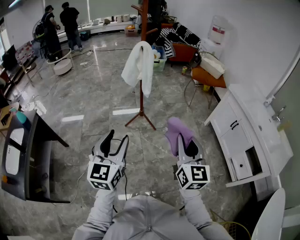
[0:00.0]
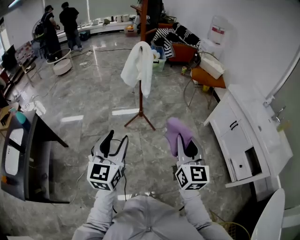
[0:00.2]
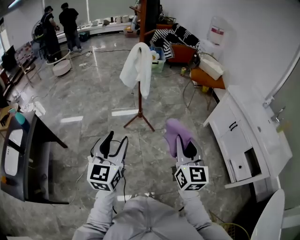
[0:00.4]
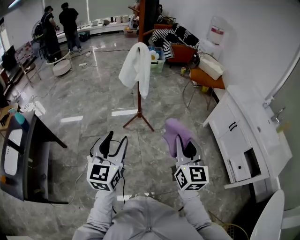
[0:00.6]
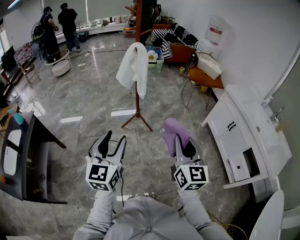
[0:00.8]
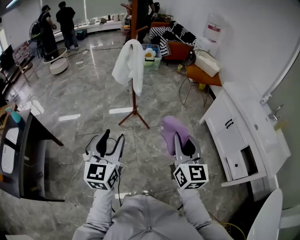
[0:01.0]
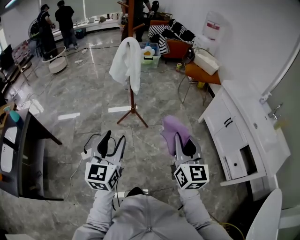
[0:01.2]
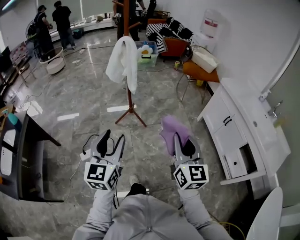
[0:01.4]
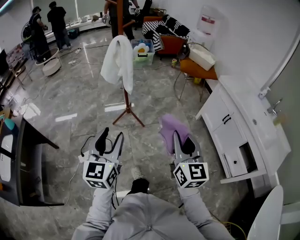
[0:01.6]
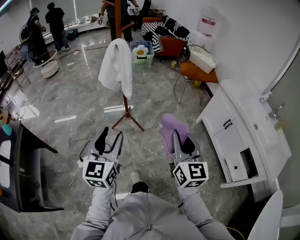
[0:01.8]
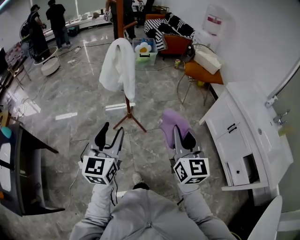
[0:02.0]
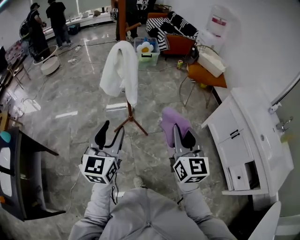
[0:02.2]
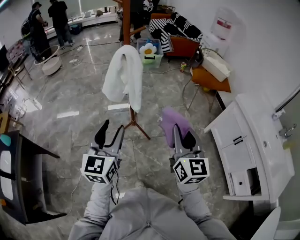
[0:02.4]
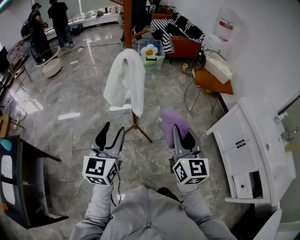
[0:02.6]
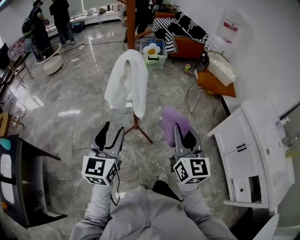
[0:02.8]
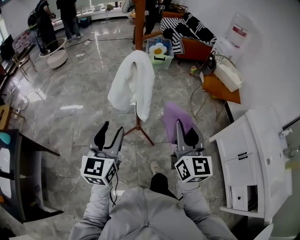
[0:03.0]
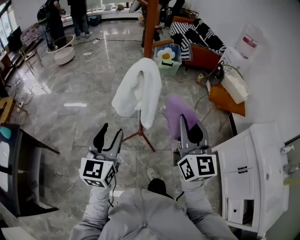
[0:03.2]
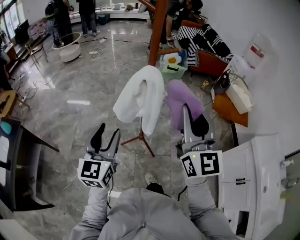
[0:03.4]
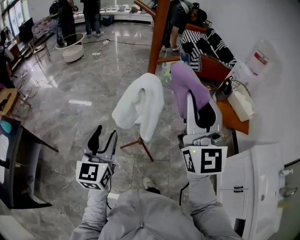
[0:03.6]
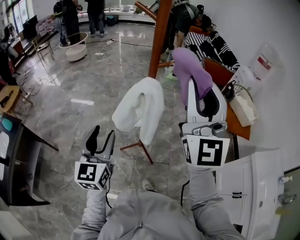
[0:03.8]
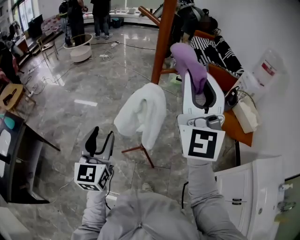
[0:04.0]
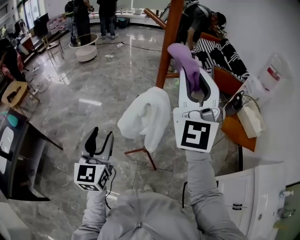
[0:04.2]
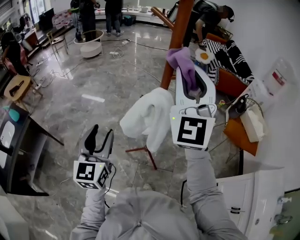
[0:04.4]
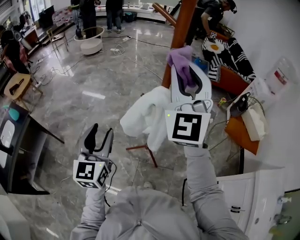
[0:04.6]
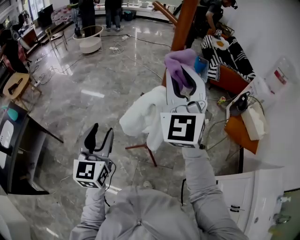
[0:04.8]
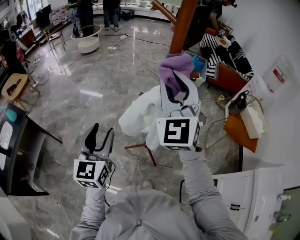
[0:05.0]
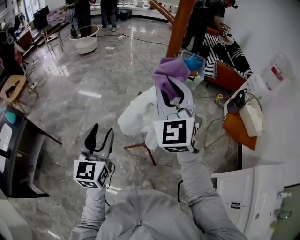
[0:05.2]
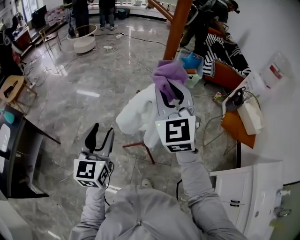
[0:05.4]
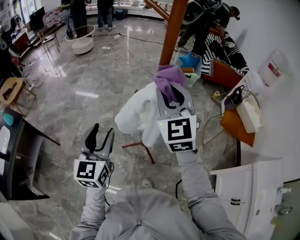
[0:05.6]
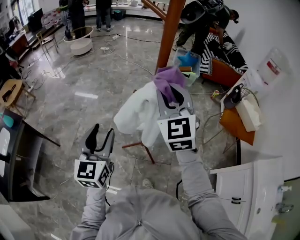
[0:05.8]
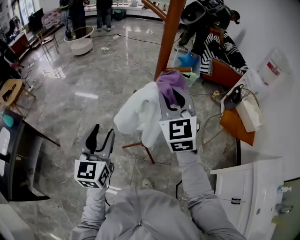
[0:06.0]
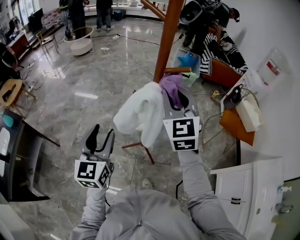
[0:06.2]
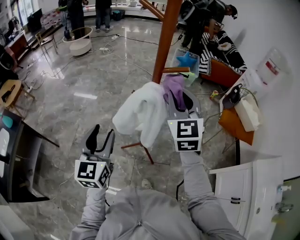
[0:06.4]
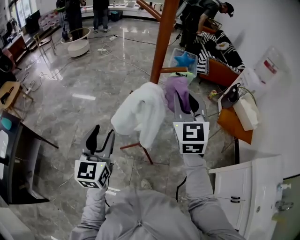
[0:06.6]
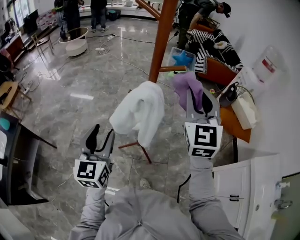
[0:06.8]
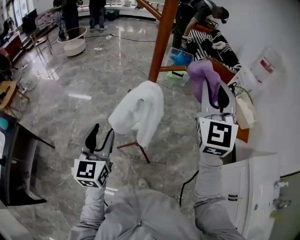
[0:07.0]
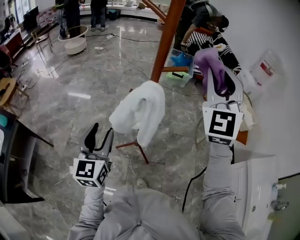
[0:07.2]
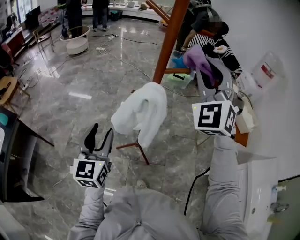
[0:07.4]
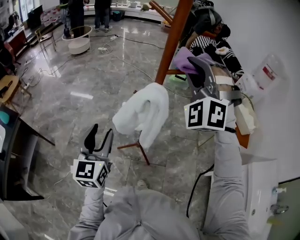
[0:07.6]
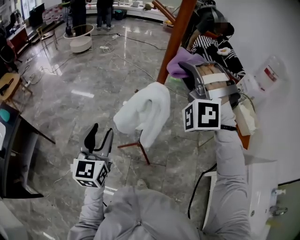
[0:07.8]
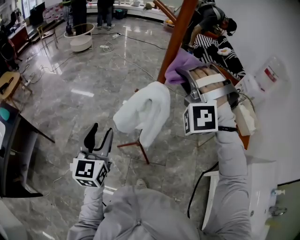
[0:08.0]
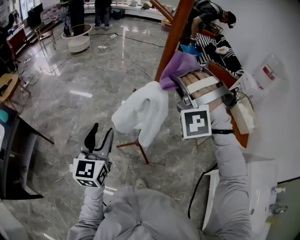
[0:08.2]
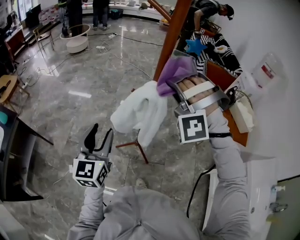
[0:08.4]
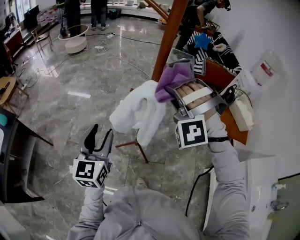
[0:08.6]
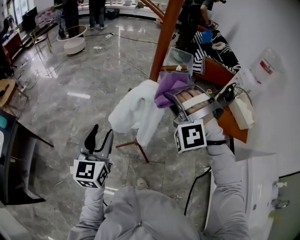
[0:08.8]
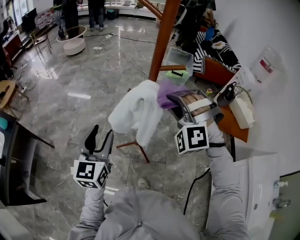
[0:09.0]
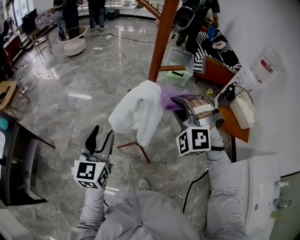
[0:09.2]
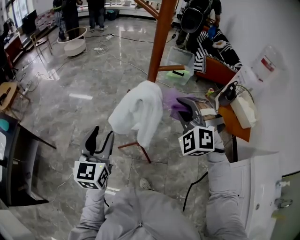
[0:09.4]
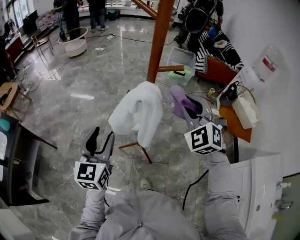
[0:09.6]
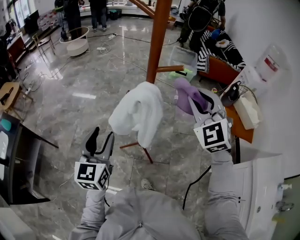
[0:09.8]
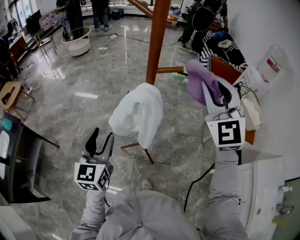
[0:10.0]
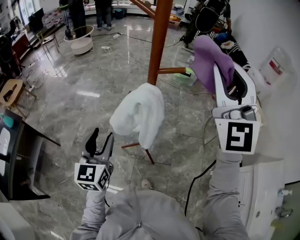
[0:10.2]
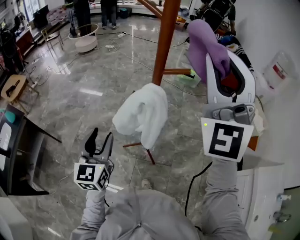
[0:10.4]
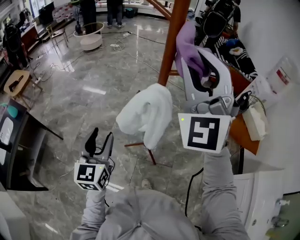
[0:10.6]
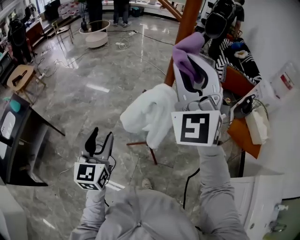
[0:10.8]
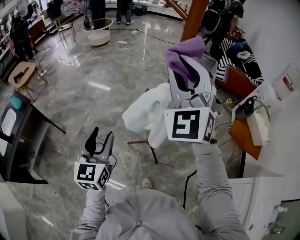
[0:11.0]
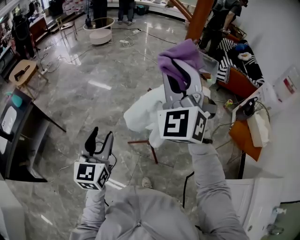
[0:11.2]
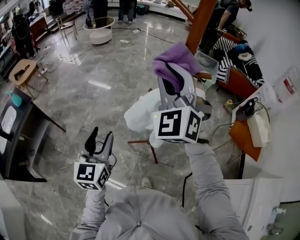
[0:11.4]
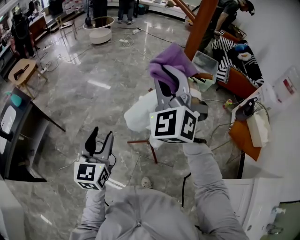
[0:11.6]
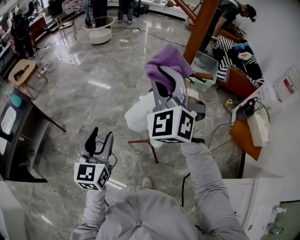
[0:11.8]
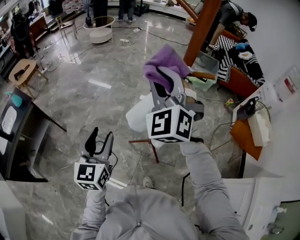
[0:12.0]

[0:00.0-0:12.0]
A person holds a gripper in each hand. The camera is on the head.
0.0 to 1.6 s: The left gripper is displaced to the right and forward by approximately 10 cm. The right gripper shifts approximately 10 cm to the right.
1.6 to 3.0 s: The grippers both shift forward by approximately 30 cm.
3.0 to 4.4 s: The right gripper goes roughly 35 cm forward and upward, and turns by roughly 40 degrees. The left gripper is displaced forward and to the left by approximately 15 cm, and changes its angle by approximately 20 degrees.
4.4 to 6.0 s: The right gripper is displaced downward by some 15 cm, and swivels roughly 20 degrees.
6.0 to 7.6 s: The right gripper is displaced upward by some 10 cm, and rotates around the line of its fingers by some 60 degrees, counterclockwise from behind.
7.6 to 9.0 s: The right gripper moves downward, about 15 cm, and rotates some 20 degrees.
9.0 to 10.4 s: The right gripper shifts roughly 25 cm upward, and angles its fingers upward, by some 50 degrees.
10.4 to 12.0 s: The left gripper moves to the left, approximately 5 cm. Meanwhile the right gripper goes approximately 25 cm downward, to the left and forward, and changes its angle by about 30 degrees.

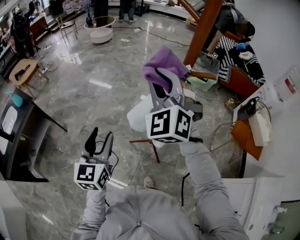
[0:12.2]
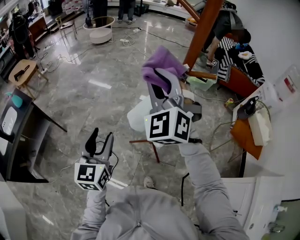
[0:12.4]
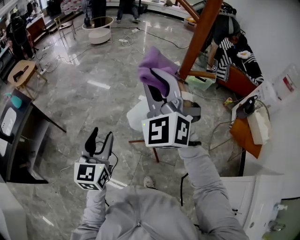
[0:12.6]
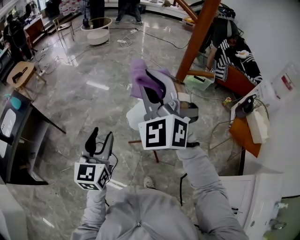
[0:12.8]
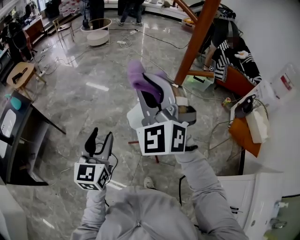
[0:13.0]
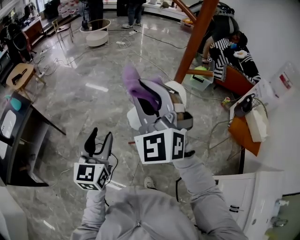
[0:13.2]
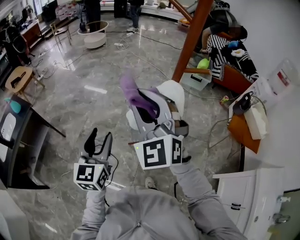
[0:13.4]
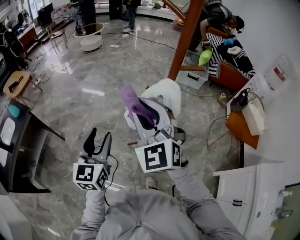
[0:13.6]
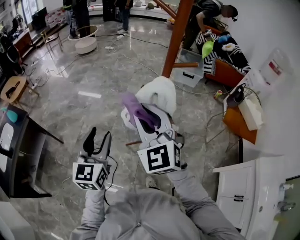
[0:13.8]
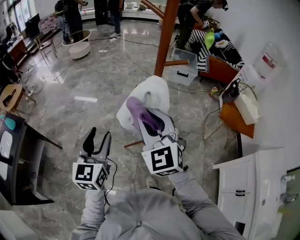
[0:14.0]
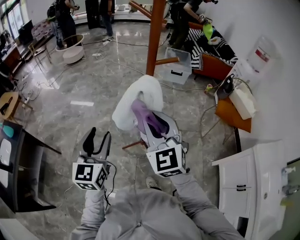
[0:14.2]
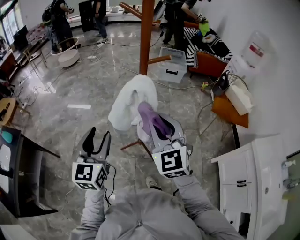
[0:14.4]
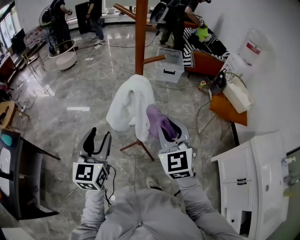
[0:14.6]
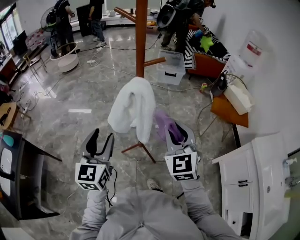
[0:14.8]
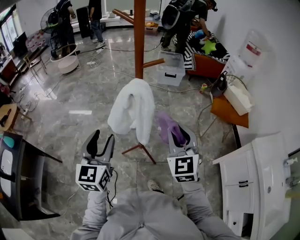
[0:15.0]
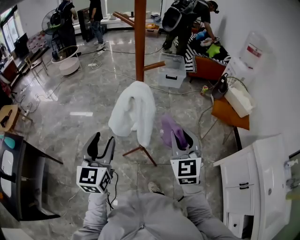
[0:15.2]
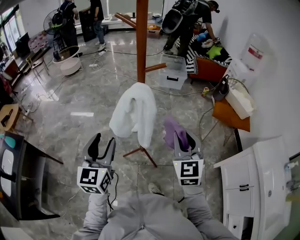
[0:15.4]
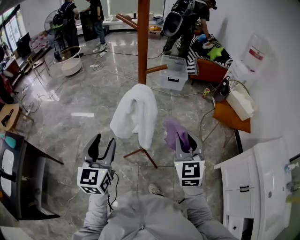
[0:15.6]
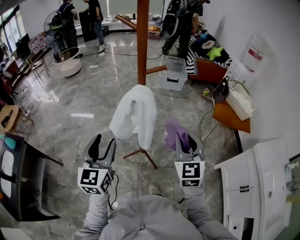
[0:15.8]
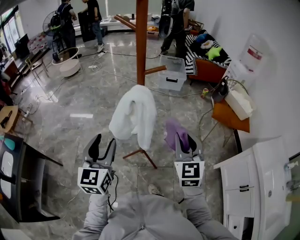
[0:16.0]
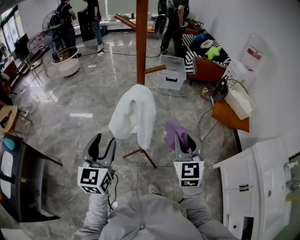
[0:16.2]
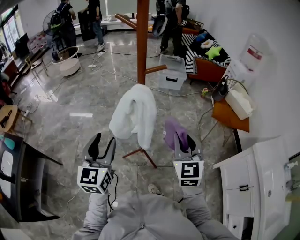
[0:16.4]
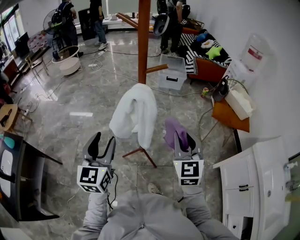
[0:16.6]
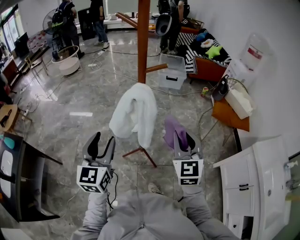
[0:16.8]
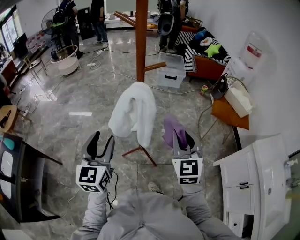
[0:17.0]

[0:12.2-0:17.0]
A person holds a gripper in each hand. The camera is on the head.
12.2 to 13.8 s: The right gripper travels backward by some 10 cm, and rotates some 20 degrees.
13.8 to 15.4 s: The left gripper heads to the right, covering approximately 5 cm. The right gripper moves to the right, some 20 cm, and changes its angle by approximately 30 degrees.
15.4 to 17.0 s: Both grippers stay put.

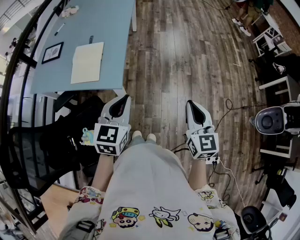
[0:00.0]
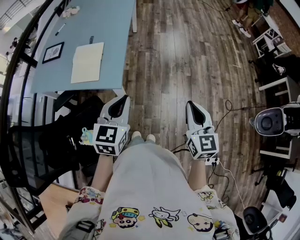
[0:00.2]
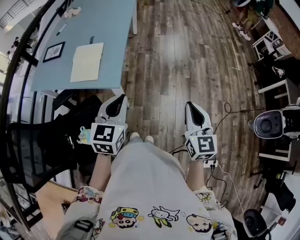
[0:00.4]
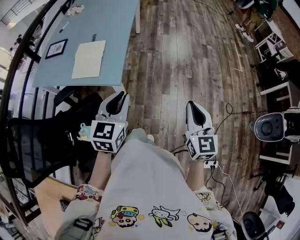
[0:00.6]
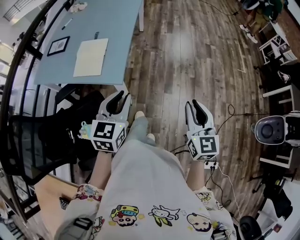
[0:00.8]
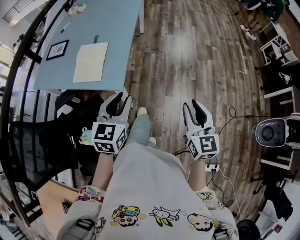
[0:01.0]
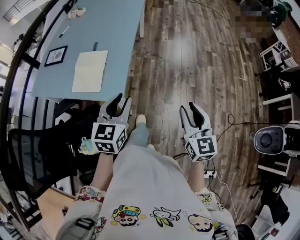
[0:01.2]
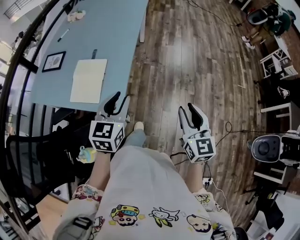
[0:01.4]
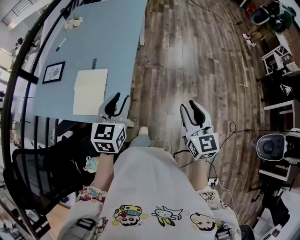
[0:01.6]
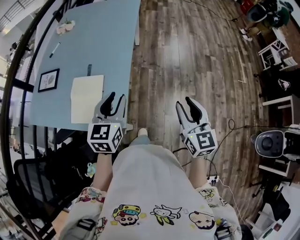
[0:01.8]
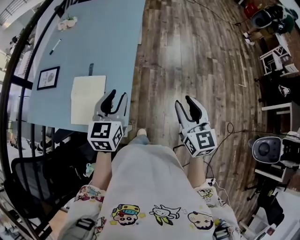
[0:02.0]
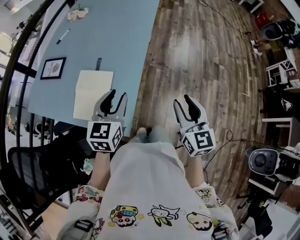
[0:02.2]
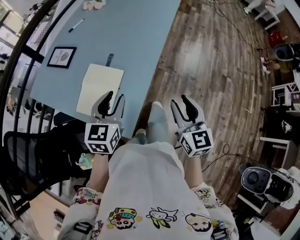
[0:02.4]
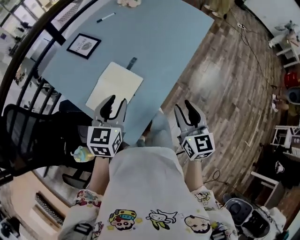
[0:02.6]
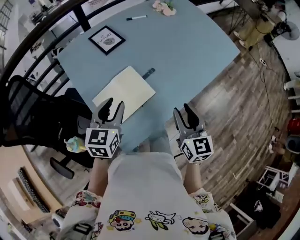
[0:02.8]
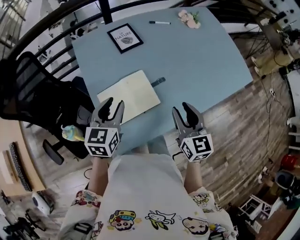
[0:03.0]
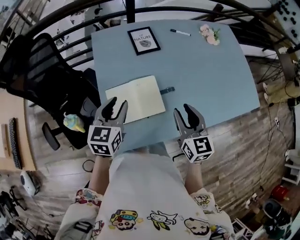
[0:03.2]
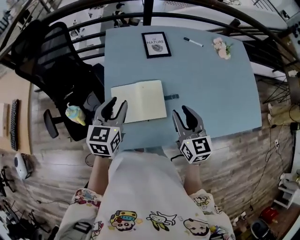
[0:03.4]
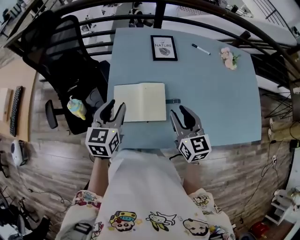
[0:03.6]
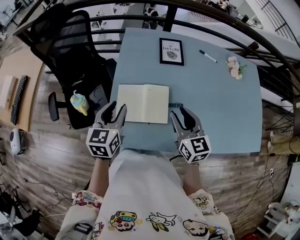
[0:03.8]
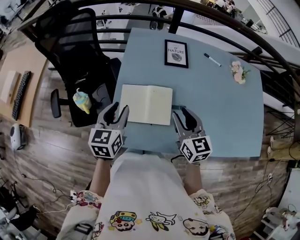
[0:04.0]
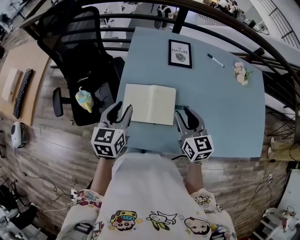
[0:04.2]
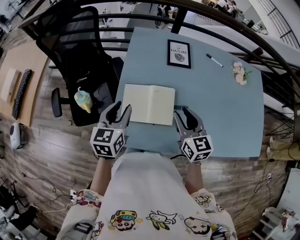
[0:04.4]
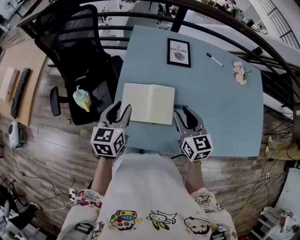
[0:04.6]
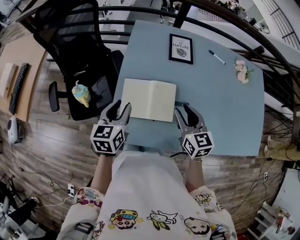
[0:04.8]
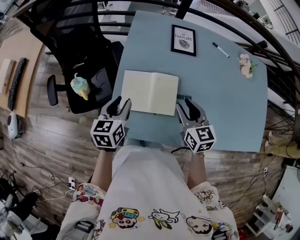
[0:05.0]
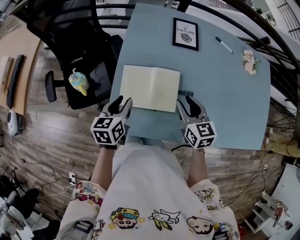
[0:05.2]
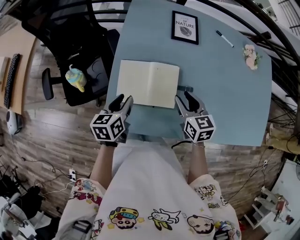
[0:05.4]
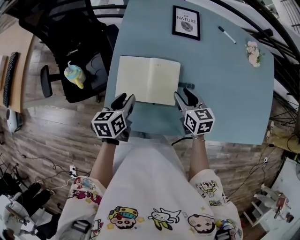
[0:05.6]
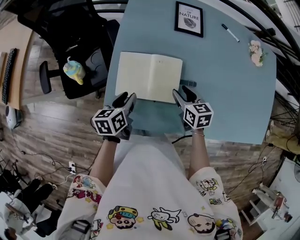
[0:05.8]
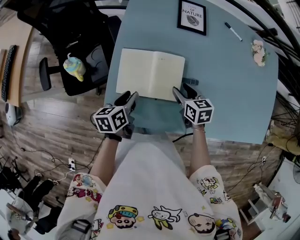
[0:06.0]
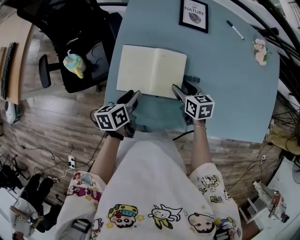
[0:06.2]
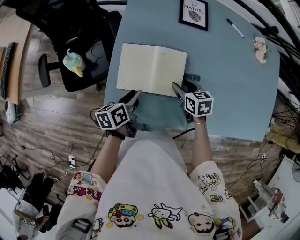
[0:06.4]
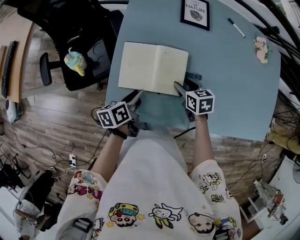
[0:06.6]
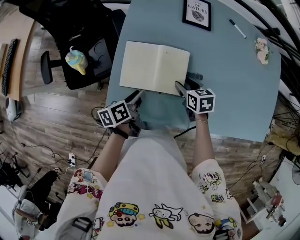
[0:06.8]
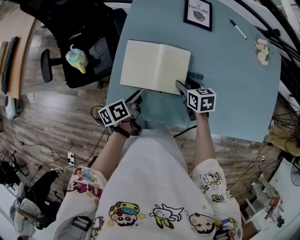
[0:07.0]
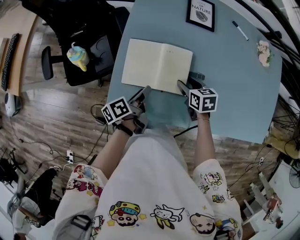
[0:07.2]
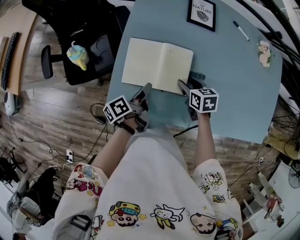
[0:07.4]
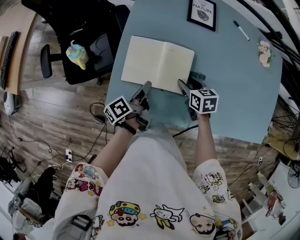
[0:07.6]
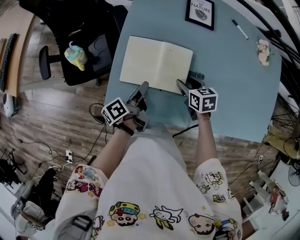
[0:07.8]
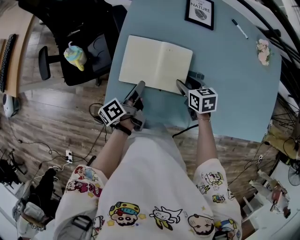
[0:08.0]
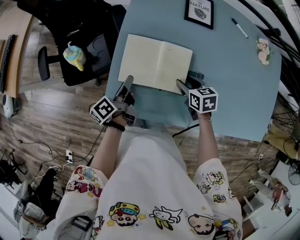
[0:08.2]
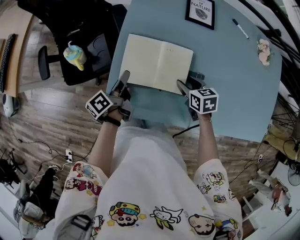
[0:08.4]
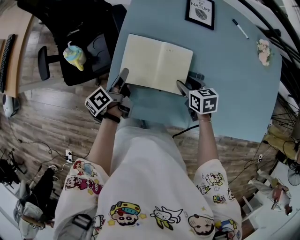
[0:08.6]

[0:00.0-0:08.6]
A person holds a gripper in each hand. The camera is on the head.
0.0 to 1.4 s: Both grippers travel together forward, approximately 15 cm. The right gripper opens up; the left gripper opens up.
1.4 to 2.8 s: The left gripper shifts by about 25 cm, and swivels some 50 degrees. The right gripper moves about 40 cm, and changes its angle by approximately 50 degrees.
2.8 to 4.4 s: The left gripper shifts by about 5 cm, and turns by some 50 degrees. Meanwhile the right gripper changes place by some 15 cm, and turns by roughly 50 degrees.
4.4 to 5.8 s: Both grippers travel together downward, approximately 15 cm. The left gripper swivels roughly 30 degrees, while the right gripper changes its angle by approximately 30 degrees.
5.8 to 7.2 s: The left gripper shifts by some 5 cm, and turns by roughly 40 degrees.
7.2 to 8.6 s: The left gripper travels forward and to the left by roughly 10 cm.
